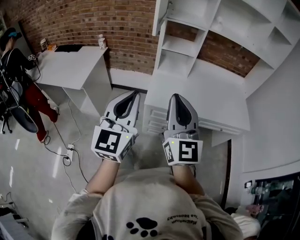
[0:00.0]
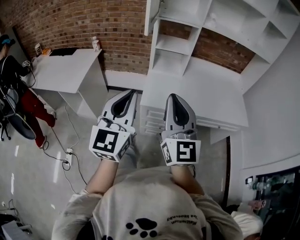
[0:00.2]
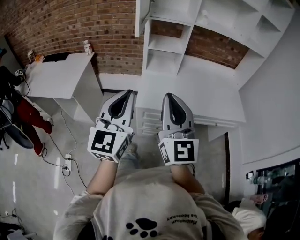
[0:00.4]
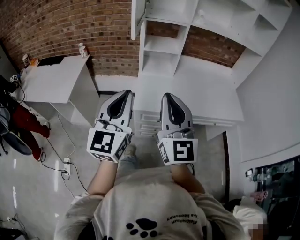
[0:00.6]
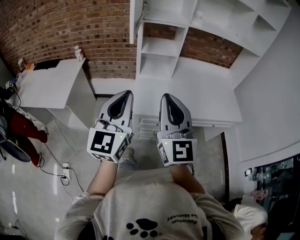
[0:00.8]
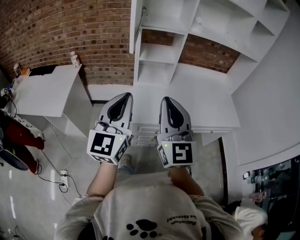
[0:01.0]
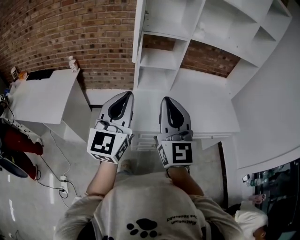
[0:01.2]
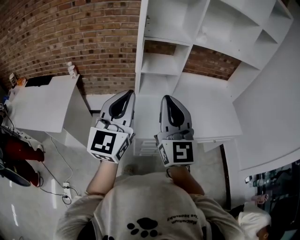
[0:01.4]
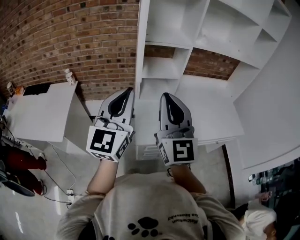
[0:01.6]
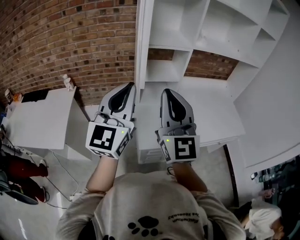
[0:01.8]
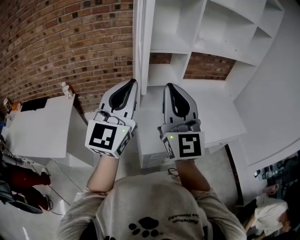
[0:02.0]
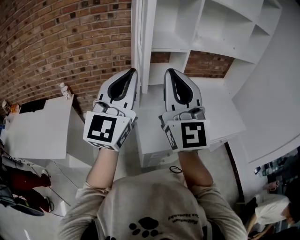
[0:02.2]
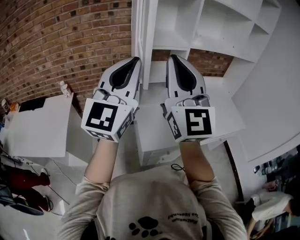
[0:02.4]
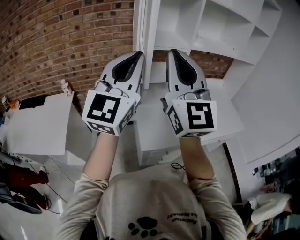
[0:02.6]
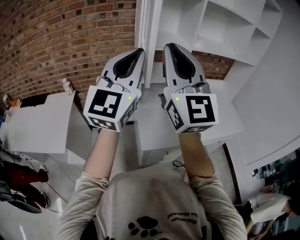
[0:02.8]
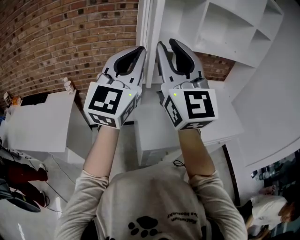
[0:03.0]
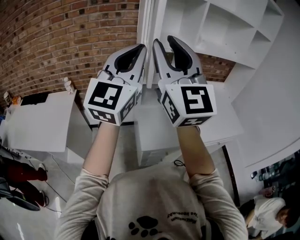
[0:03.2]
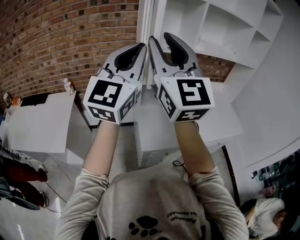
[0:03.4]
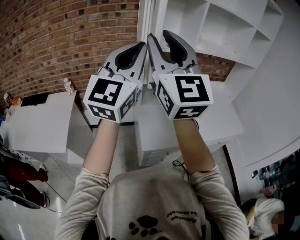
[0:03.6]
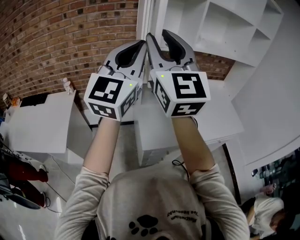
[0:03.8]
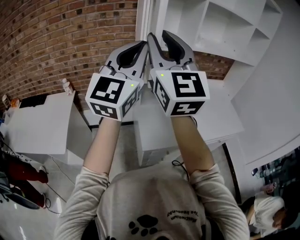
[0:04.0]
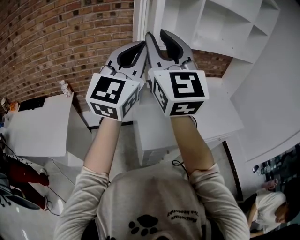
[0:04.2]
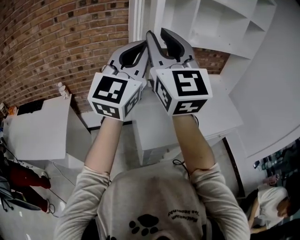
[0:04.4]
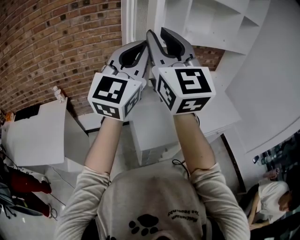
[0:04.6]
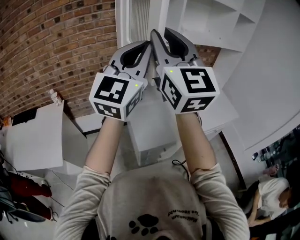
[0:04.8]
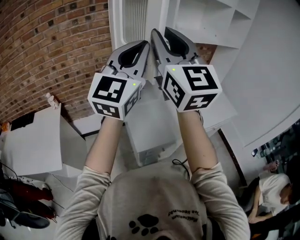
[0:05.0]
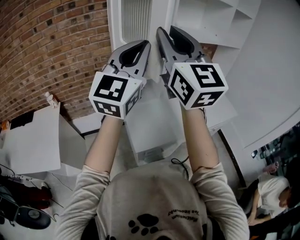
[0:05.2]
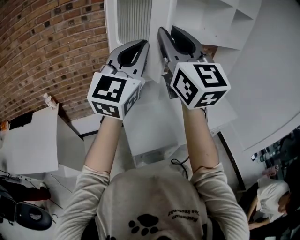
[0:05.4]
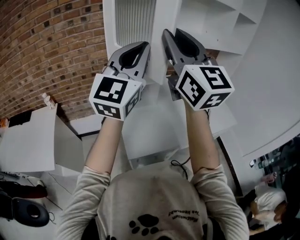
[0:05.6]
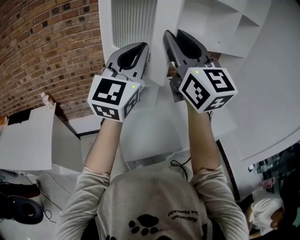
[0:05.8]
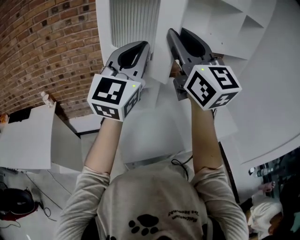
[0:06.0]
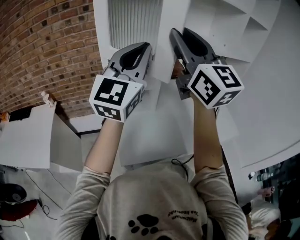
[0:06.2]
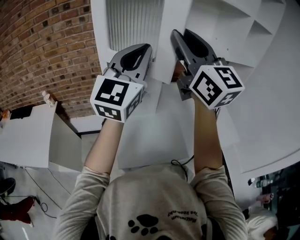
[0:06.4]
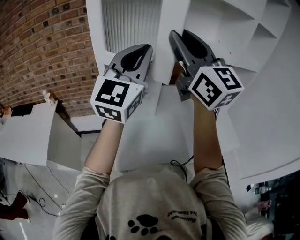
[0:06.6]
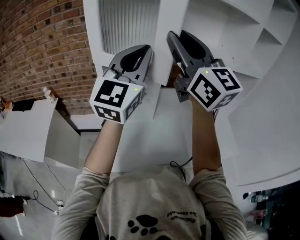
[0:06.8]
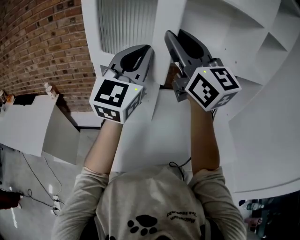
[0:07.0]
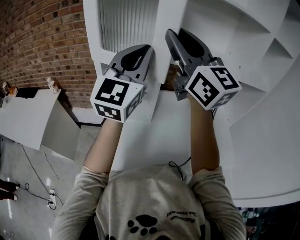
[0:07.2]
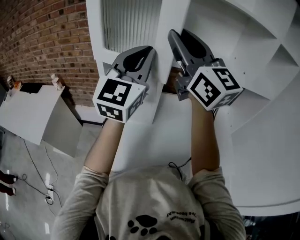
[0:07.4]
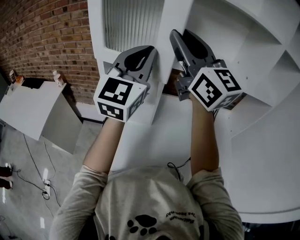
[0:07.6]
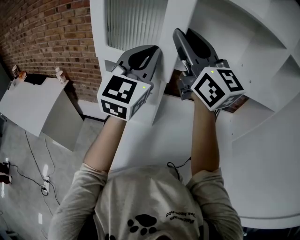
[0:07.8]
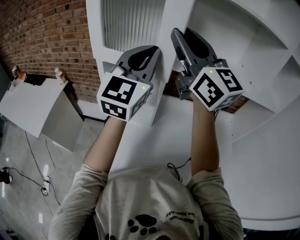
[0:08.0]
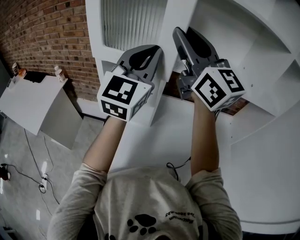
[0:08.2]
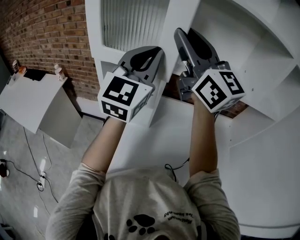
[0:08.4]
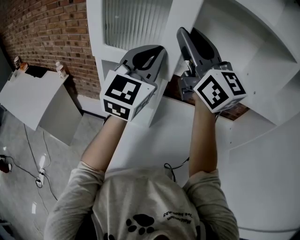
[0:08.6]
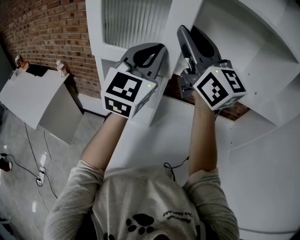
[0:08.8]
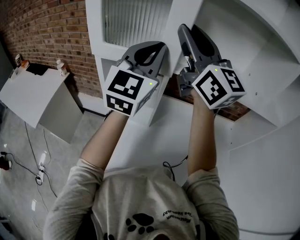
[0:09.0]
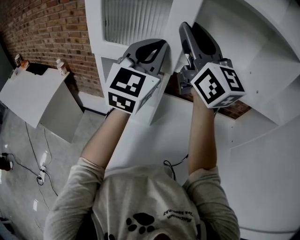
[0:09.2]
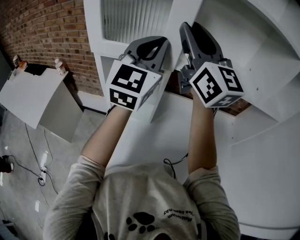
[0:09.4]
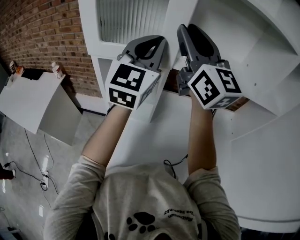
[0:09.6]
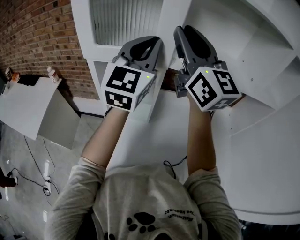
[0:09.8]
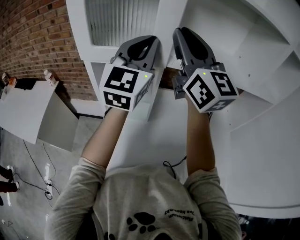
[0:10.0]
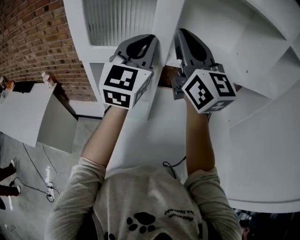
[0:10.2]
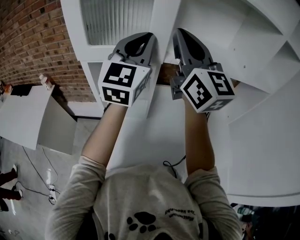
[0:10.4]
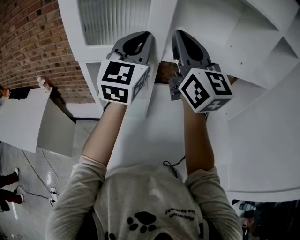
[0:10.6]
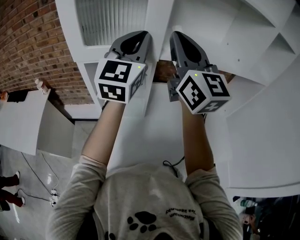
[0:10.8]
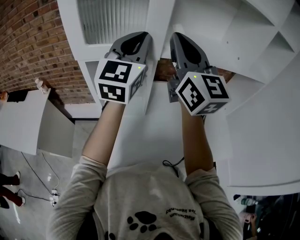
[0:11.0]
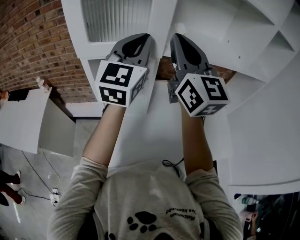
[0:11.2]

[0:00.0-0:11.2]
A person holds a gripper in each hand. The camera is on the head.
0:00.0 to 0:01.6: The grippers both shift forward by about 20 cm.
0:01.6 to 0:03.2: The right gripper shifts approximately 15 cm upward and to the left, and opens. Meanwhile the left gripper goes roughly 15 cm upward and forward.
0:03.2 to 0:04.8: The left gripper heads to the right, covering roughly 5 cm. The right gripper ends up about 5 cm from where it was.
0:04.8 to 0:06.4: The grippers both shift forward and to the right by roughly 20 cm.
0:06.4 to 0:08.0: Both grippers move forward and to the right, approximately 10 cm. The right gripper changes its angle by roughly 20 degrees.
0:08.0 to 0:09.6: The grippers move only a little.
0:09.6 to 0:11.2: The right gripper changes place by roughly 5 cm, and closes up.

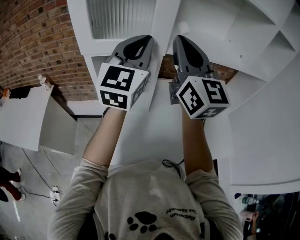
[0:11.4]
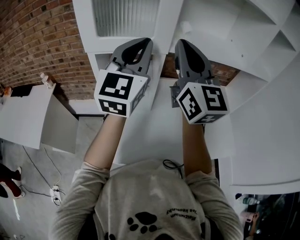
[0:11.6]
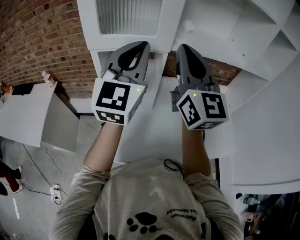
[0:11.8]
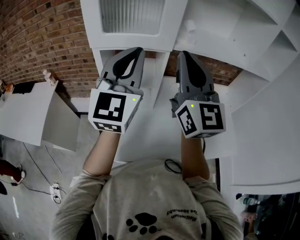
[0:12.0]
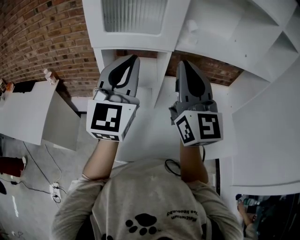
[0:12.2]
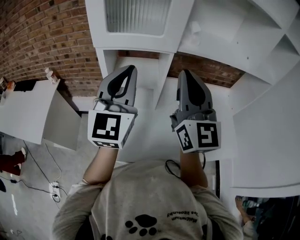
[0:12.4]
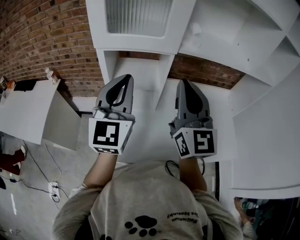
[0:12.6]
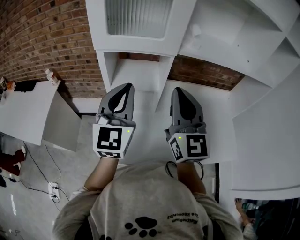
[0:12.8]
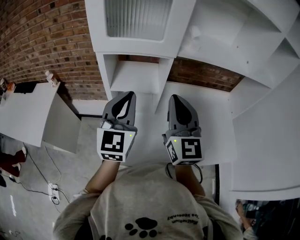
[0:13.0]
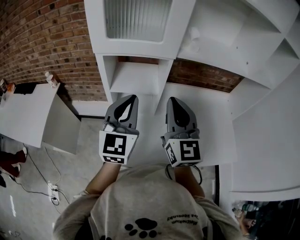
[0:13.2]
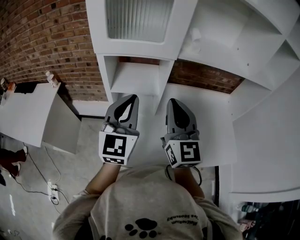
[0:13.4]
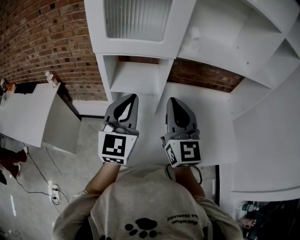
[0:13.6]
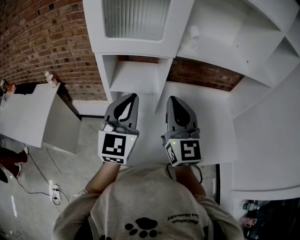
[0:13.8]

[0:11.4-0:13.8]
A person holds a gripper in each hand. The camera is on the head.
0:11.4 to 0:12.6: The right gripper heads downward and backward, covering some 10 cm, while the left gripper heads backward, to the left and downward, covering about 15 cm.
0:12.6 to 0:13.8: Both grippers move downward, approximately 5 cm.

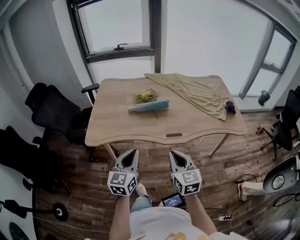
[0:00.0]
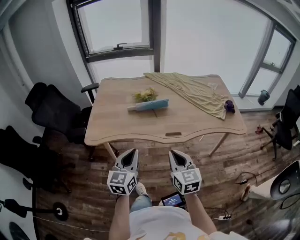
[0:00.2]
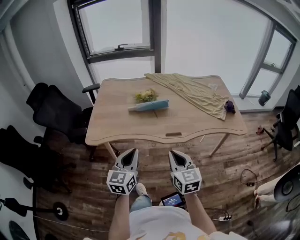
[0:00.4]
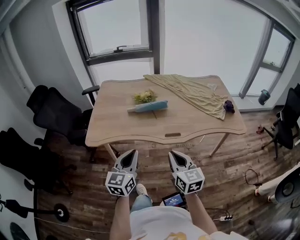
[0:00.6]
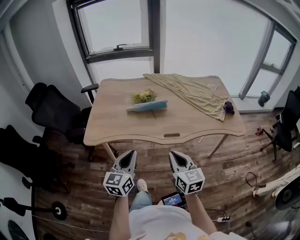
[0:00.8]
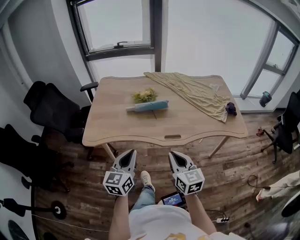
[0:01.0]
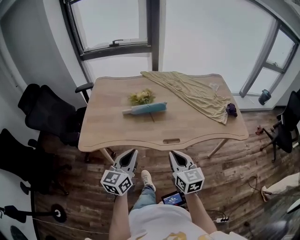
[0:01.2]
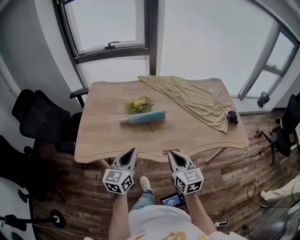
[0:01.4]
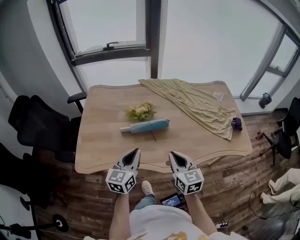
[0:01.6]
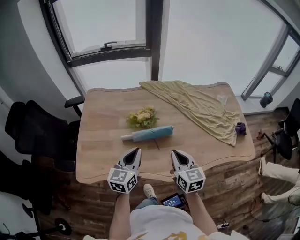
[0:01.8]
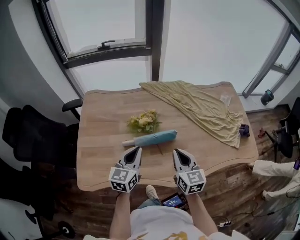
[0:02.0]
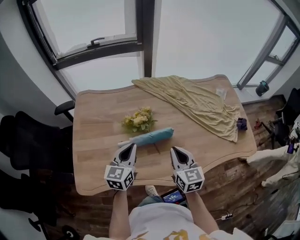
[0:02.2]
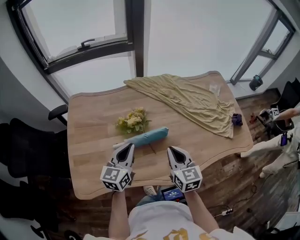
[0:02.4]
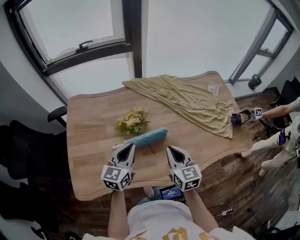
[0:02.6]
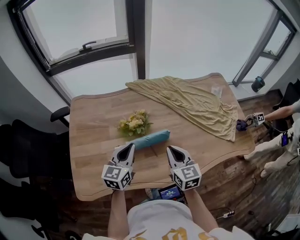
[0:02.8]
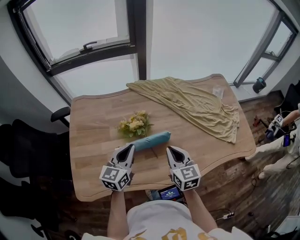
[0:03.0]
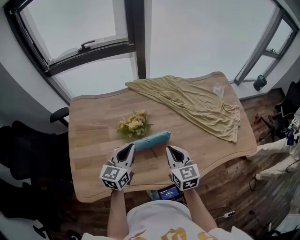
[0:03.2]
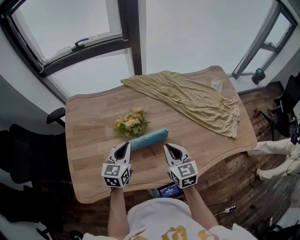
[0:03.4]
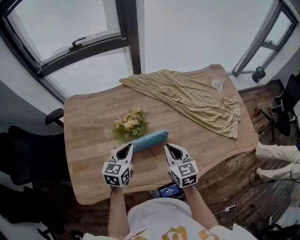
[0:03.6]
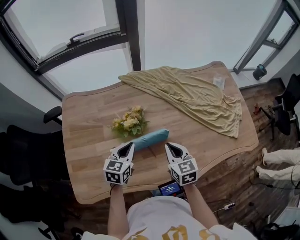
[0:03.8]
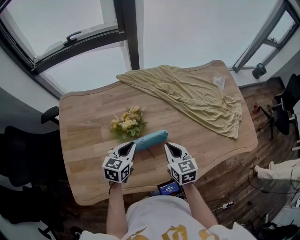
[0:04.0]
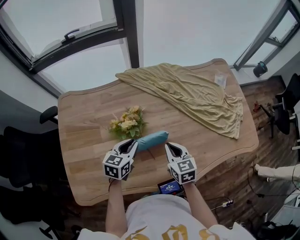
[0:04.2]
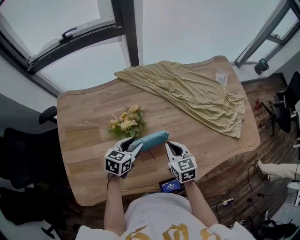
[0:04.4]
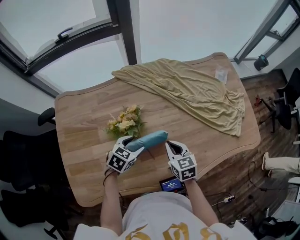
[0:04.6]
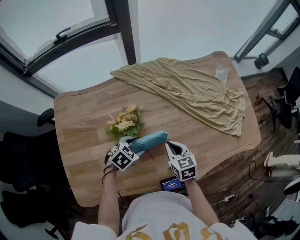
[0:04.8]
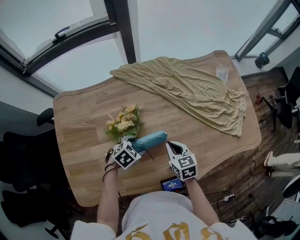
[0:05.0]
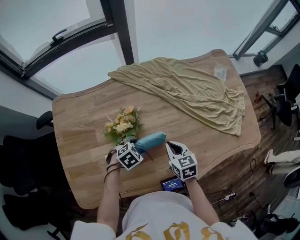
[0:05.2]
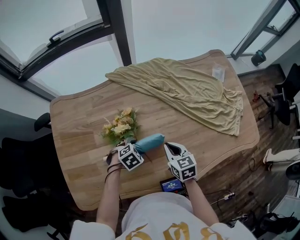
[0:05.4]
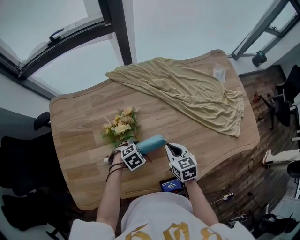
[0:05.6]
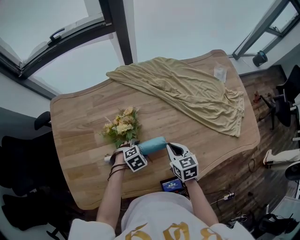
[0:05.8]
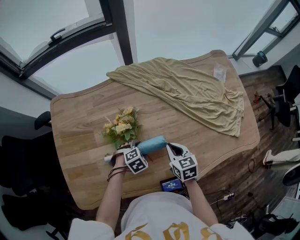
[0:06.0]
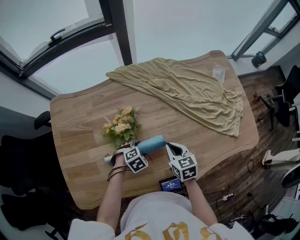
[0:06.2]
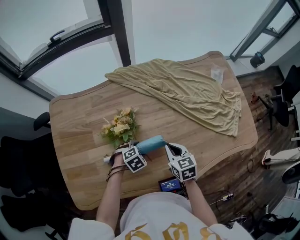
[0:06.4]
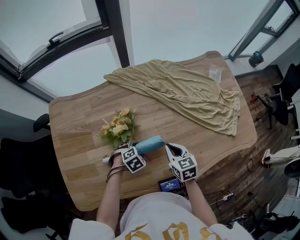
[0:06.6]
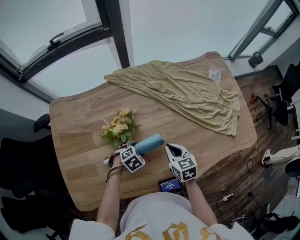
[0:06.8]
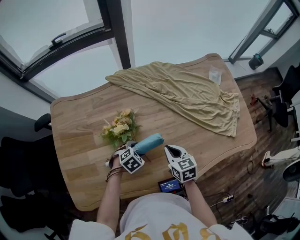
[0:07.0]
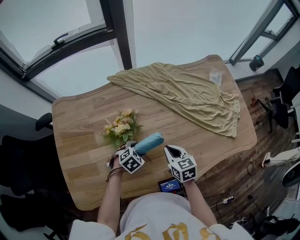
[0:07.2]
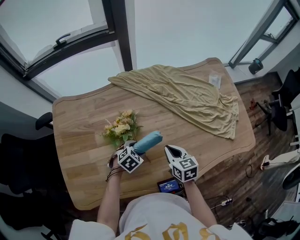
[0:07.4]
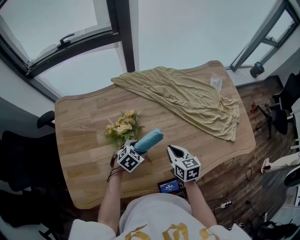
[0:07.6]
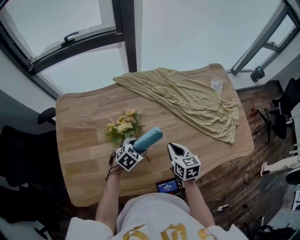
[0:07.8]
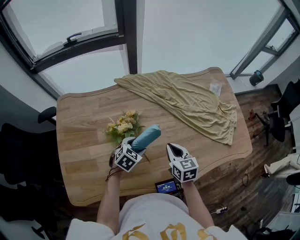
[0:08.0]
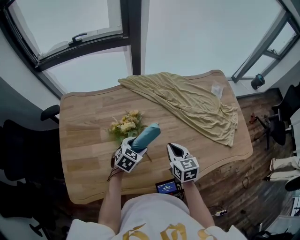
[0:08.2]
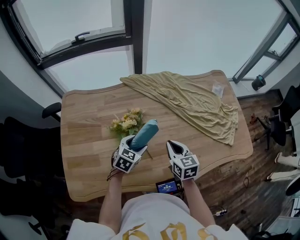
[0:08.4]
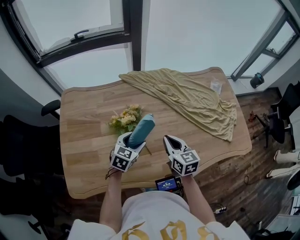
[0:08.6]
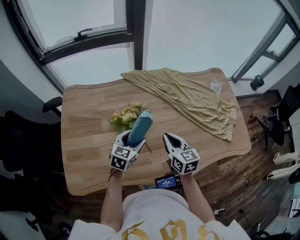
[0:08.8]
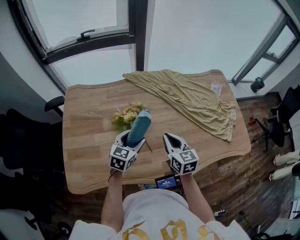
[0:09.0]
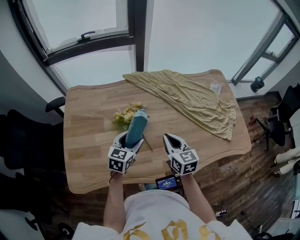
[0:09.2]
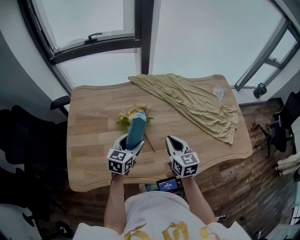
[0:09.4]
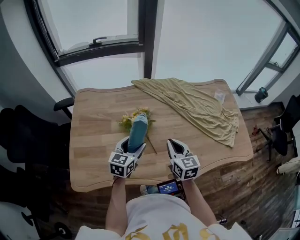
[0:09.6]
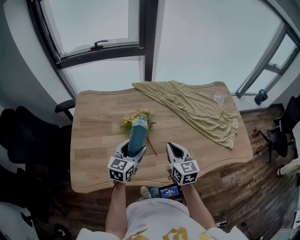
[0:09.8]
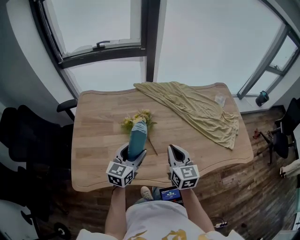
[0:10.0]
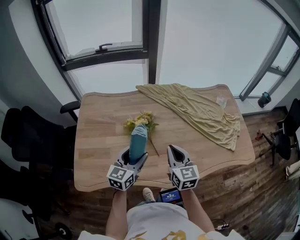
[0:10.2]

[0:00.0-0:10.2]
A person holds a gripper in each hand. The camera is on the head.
0:00.0 to 0:01.4: Both grippers travel together forward, roughly 15 cm.
0:01.4 to 0:03.0: The grippers both shift forward by approximately 25 cm.
0:03.0 to 0:04.4: Both grippers move downward and forward, about 15 cm. The left gripper turns by about 30 degrees, and opens its fingers.
0:04.4 to 0:05.8: The left gripper travels downward by approximately 15 cm, tilts its fingers about 30 degrees downward, and opens up. The right gripper shifts by approximately 5 cm.
0:05.8 to 0:07.2: The grippers move only a little.
0:07.2 to 0:08.8: Both grippers travel together upward, some 10 cm. The left gripper tilts its fingers about 30 degrees upward.
0:08.8 to 0:10.2: The two grippers go approximately 10 cm backward and upward. The left gripper turns by roughly 20 degrees.
